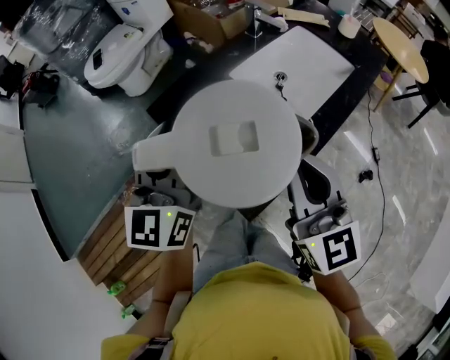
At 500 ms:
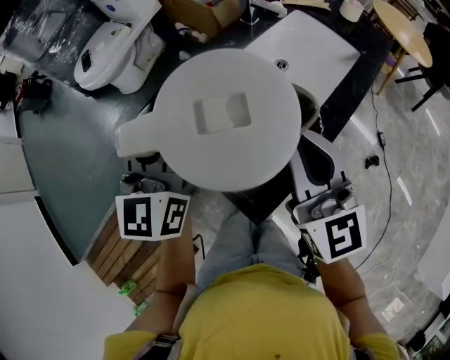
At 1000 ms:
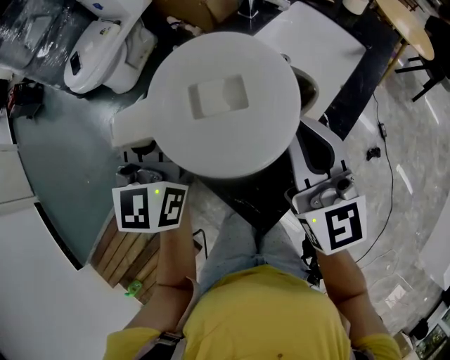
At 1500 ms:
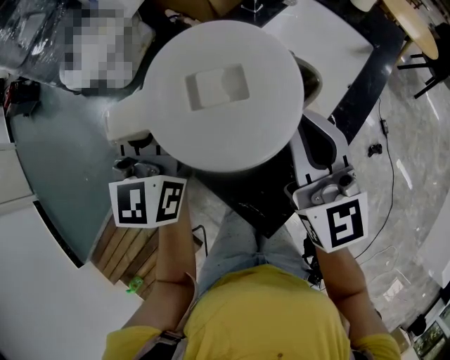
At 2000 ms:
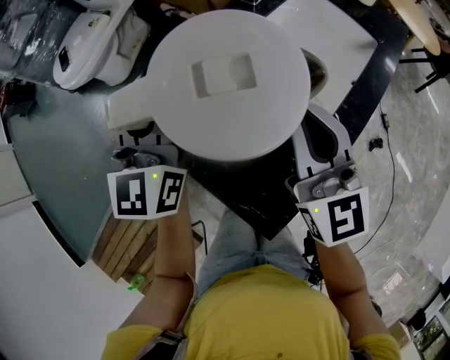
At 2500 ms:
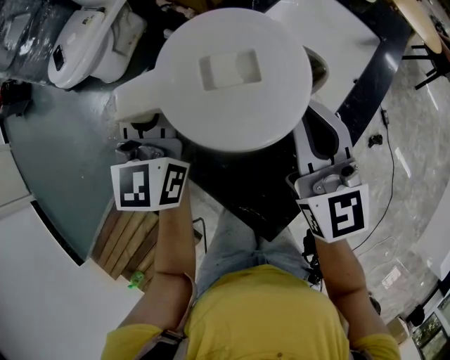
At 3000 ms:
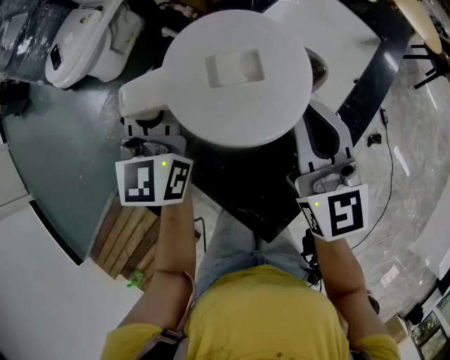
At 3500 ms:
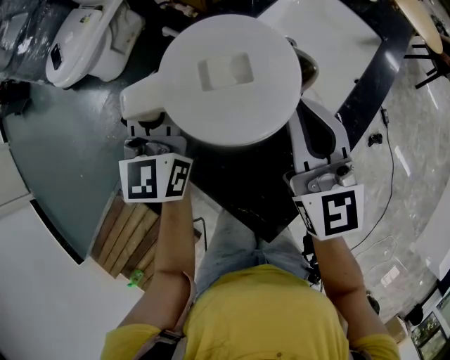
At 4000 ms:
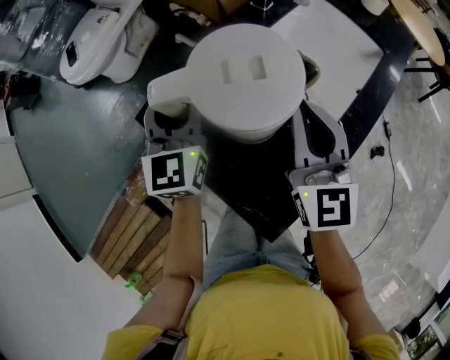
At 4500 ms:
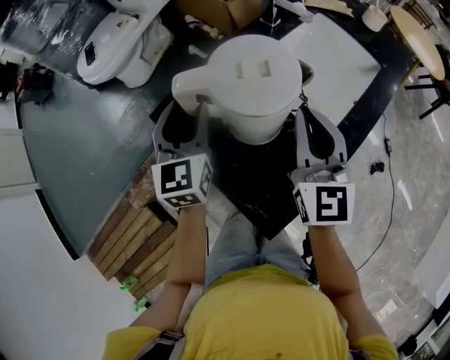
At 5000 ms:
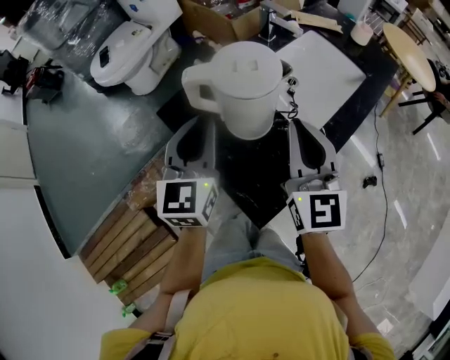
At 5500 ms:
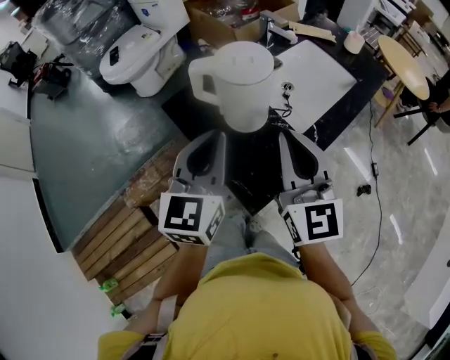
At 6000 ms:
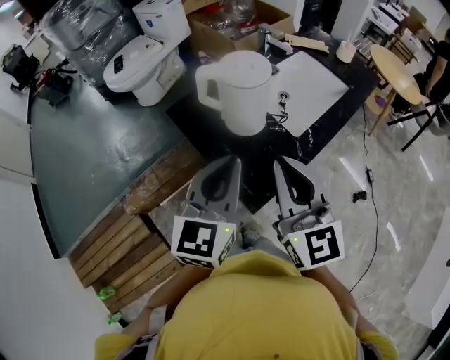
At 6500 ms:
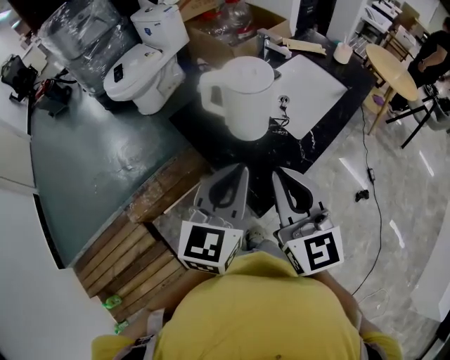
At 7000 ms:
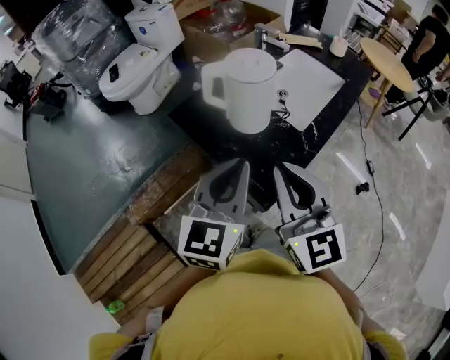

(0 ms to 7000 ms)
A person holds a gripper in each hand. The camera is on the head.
0 ms - 2000 ms: The right gripper goes approximately 15 cm forward and downward. The left gripper shifts some 15 cm forward.
2000 ms - 3500 ms: The left gripper travels downward by roughly 5 cm.
3500 ms - 5000 ms: The right gripper is displaced backward and upward by about 10 cm, while the left gripper travels backward by approximately 15 cm, and opens, then closes again.
5000 ms - 7000 ms: The left gripper is displaced backward by about 15 cm; the right gripper heads backward and to the left, covering approximately 20 cm.

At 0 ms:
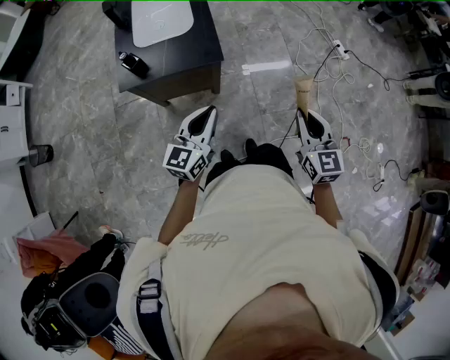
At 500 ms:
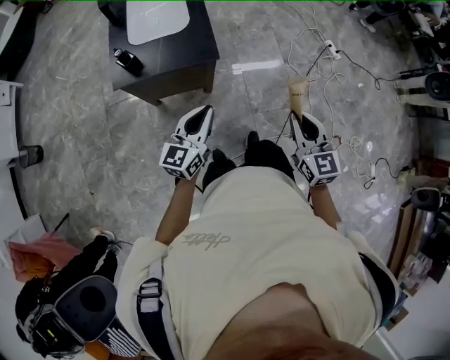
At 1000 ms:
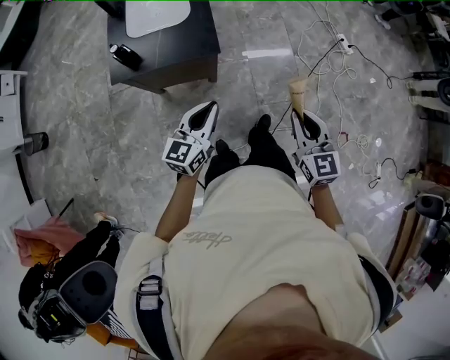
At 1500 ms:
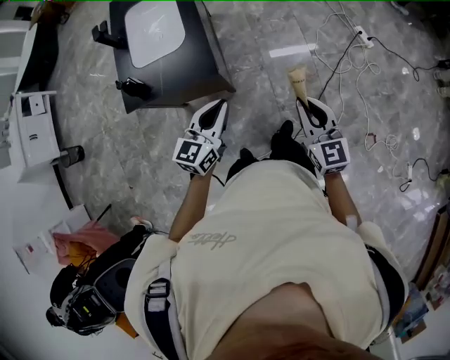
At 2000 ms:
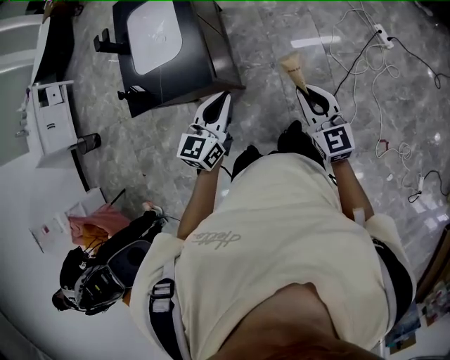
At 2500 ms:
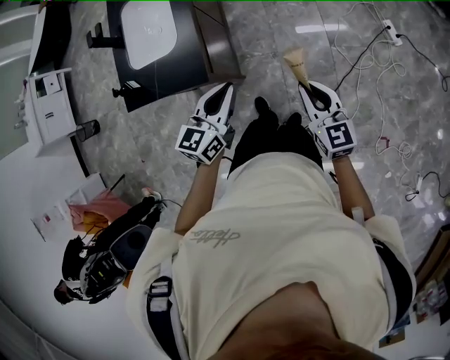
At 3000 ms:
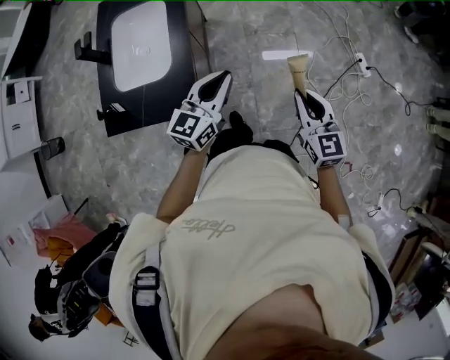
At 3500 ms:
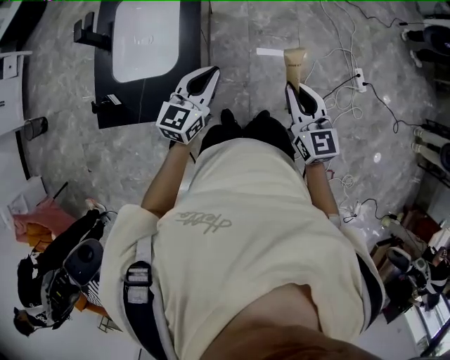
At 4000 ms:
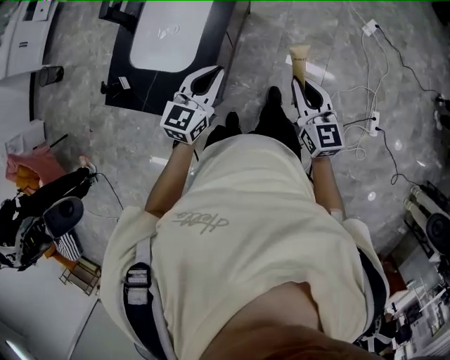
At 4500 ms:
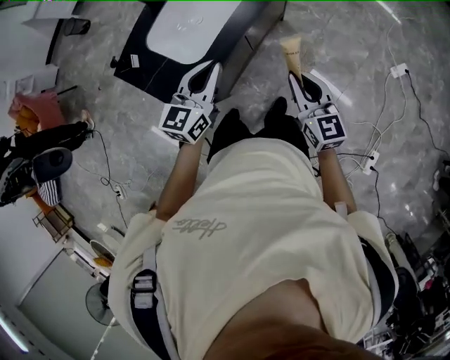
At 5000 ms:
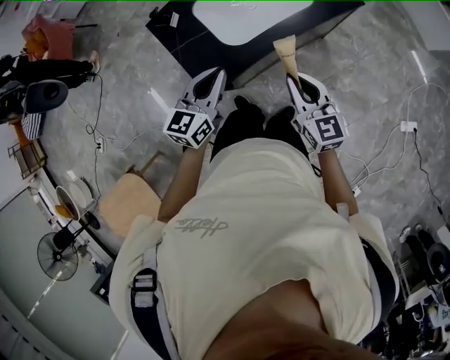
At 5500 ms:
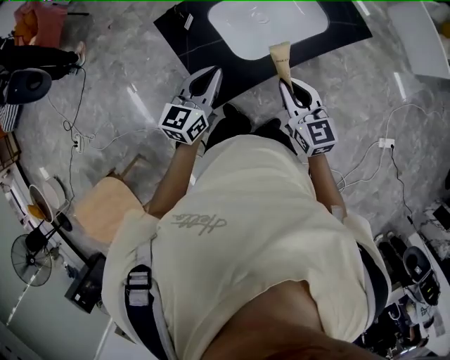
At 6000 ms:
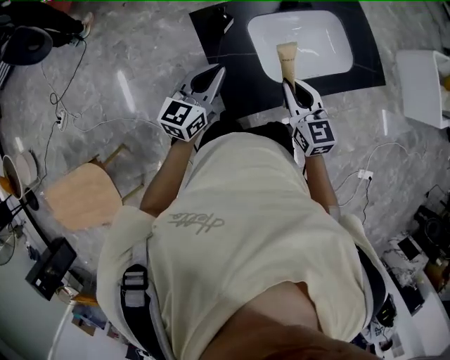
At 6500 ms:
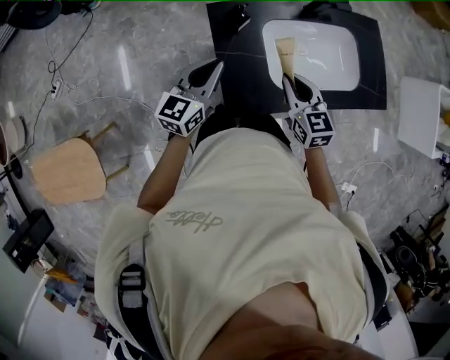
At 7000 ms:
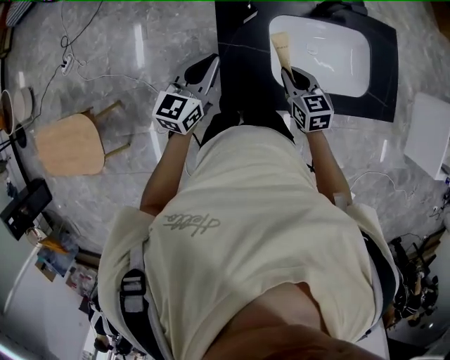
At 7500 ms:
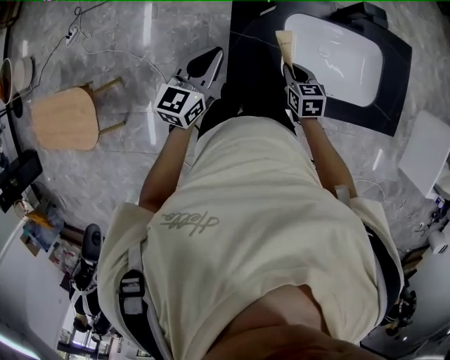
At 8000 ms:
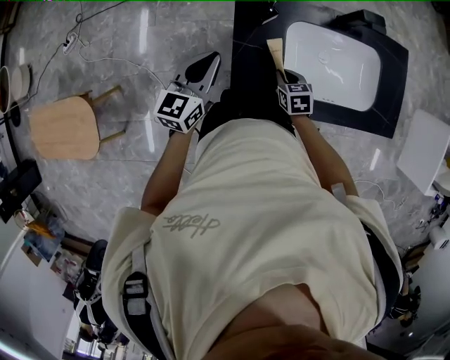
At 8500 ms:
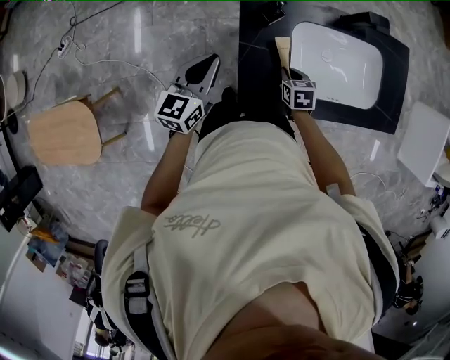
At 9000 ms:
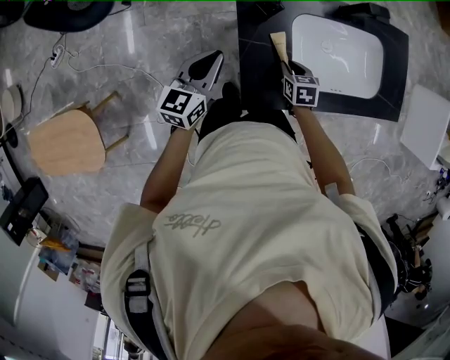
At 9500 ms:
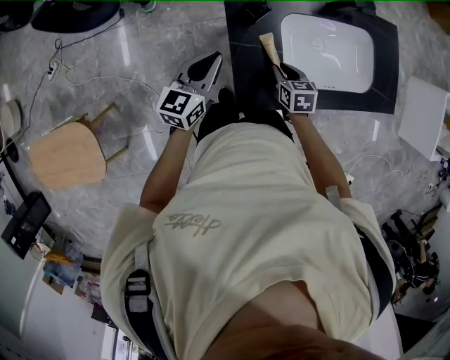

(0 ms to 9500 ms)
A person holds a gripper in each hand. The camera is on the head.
0 ms - 2000 ms: Both grippers move forward and to the right, roughly 30 cm.
2000 ms - 4000 ms: Both grippers travel together forward, about 35 cm.
4000 ms - 5500 ms: The right gripper ends up roughly 25 cm from where it was, and changes its angle by approximately 50 degrees. The left gripper moves about 20 cm, and rotates approximately 50 degrees.
5500 ms - 7500 ms: The left gripper ends up roughly 15 cm from where it was, and rotates roughly 30 degrees. Meanwhile the right gripper moves some 25 cm, and rotates approximately 40 degrees.
7500 ms - 9500 ms: The right gripper changes place by roughly 5 cm, while the left gripper shifts by about 5 cm.

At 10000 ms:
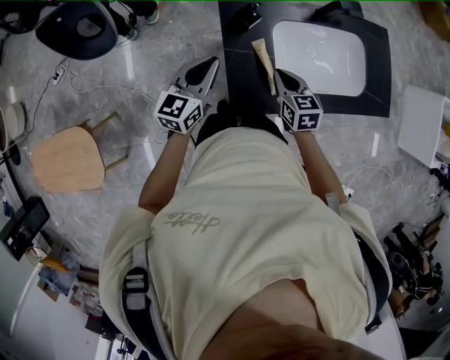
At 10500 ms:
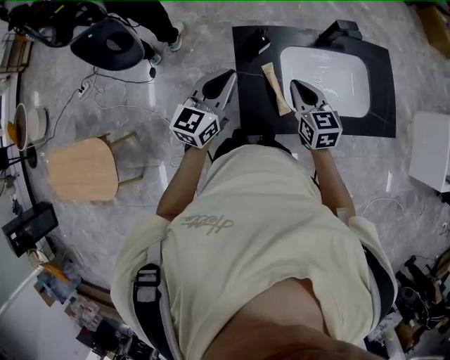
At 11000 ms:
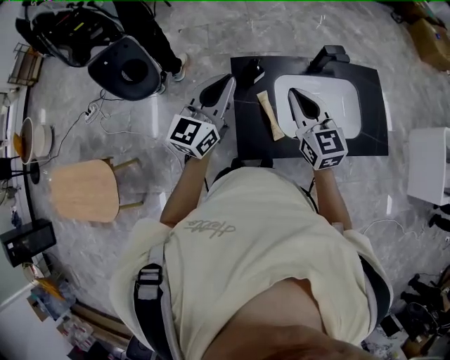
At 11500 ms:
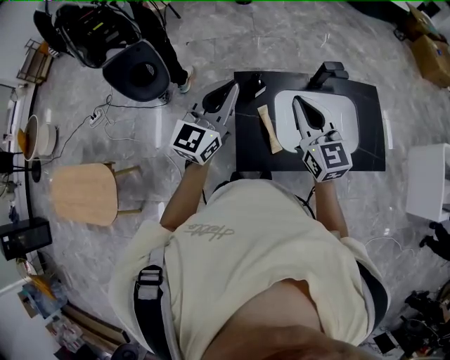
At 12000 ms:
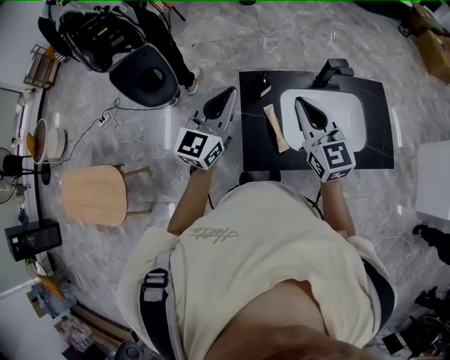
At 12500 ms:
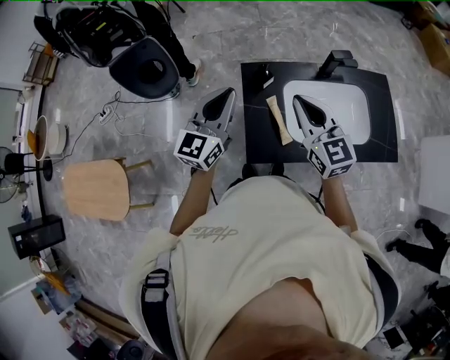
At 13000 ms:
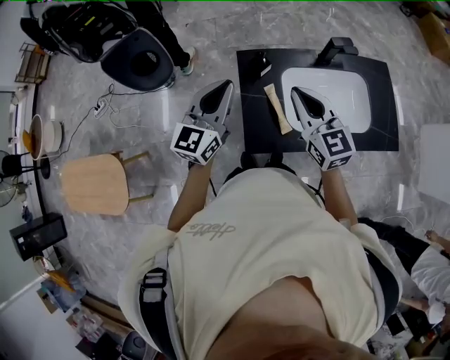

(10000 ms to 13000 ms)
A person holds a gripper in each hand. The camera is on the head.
10000 ms - 11500 ms: The grippers both shift upward by roughly 25 cm. The right gripper angles its fingers upward, by approximately 30 degrees; the left gripper turns by some 30 degrees.
11500 ms - 13000 ms: The left gripper ends up some 5 cm from where it was.

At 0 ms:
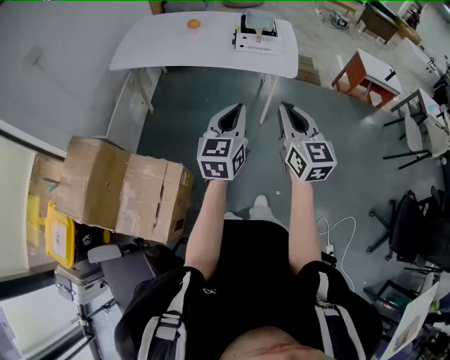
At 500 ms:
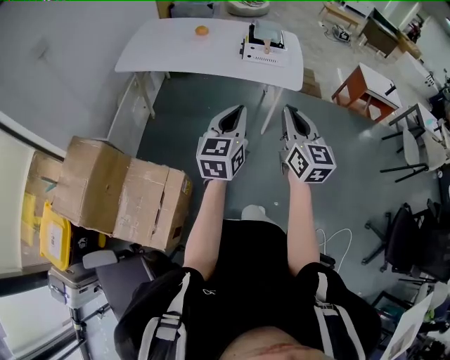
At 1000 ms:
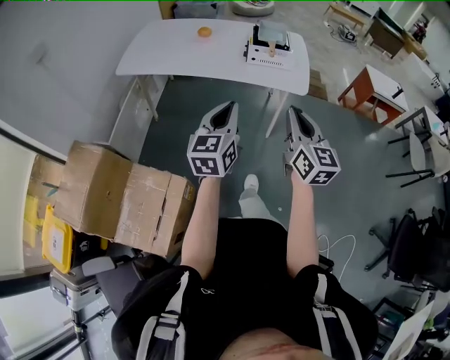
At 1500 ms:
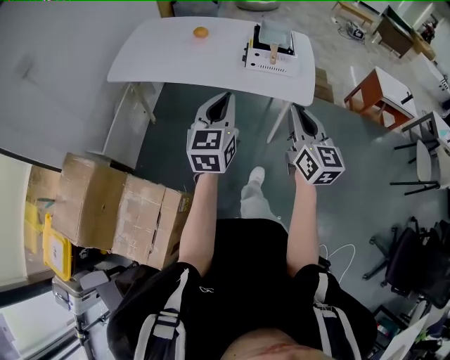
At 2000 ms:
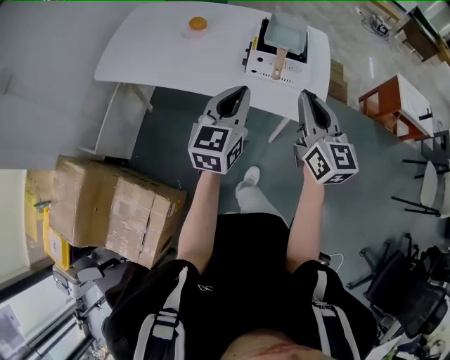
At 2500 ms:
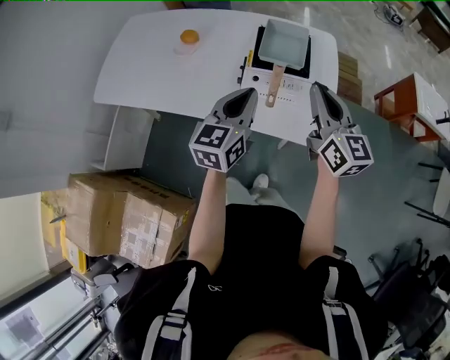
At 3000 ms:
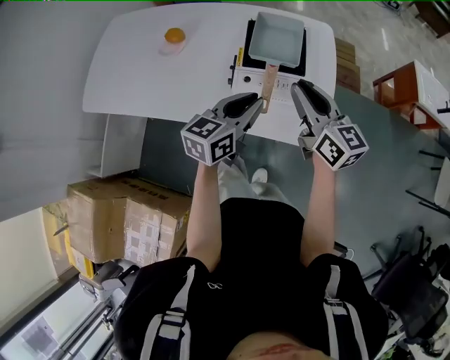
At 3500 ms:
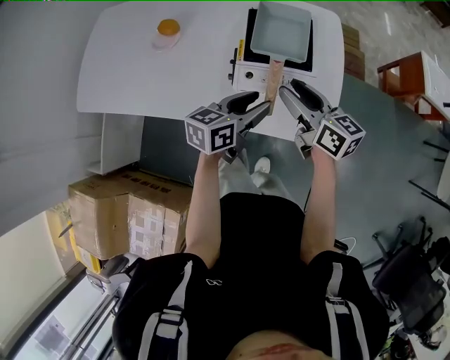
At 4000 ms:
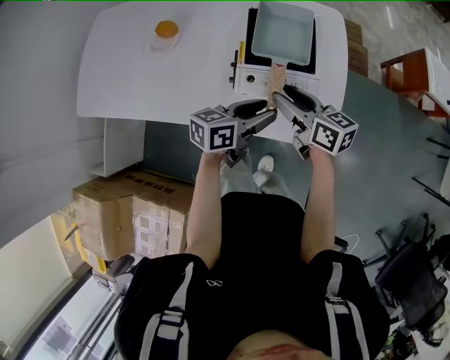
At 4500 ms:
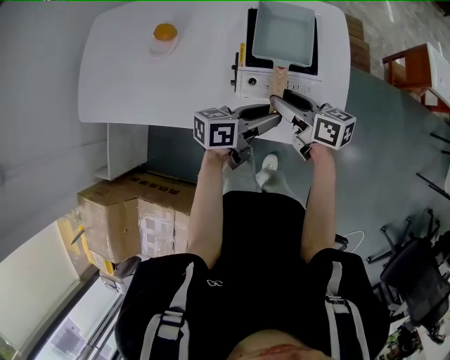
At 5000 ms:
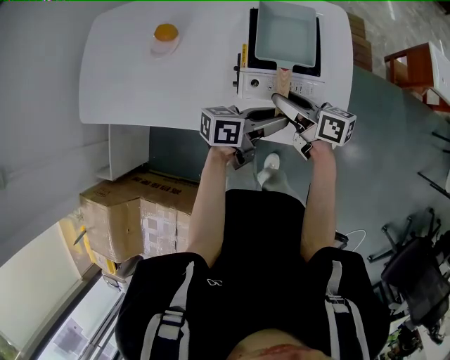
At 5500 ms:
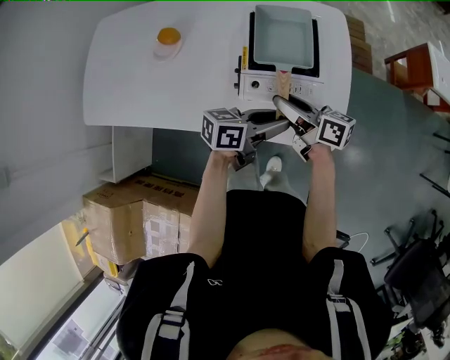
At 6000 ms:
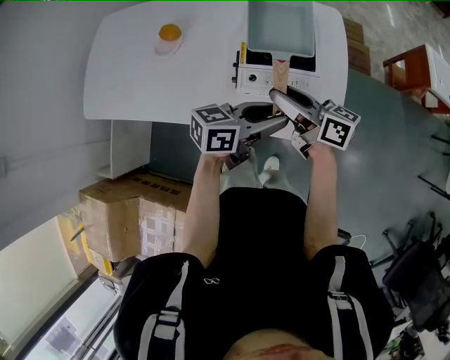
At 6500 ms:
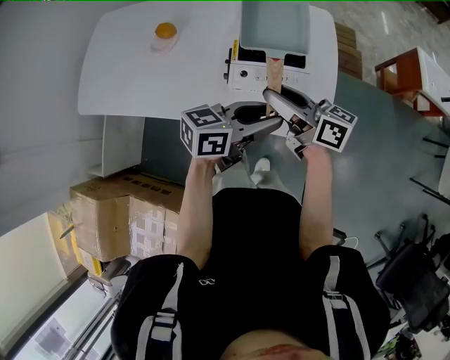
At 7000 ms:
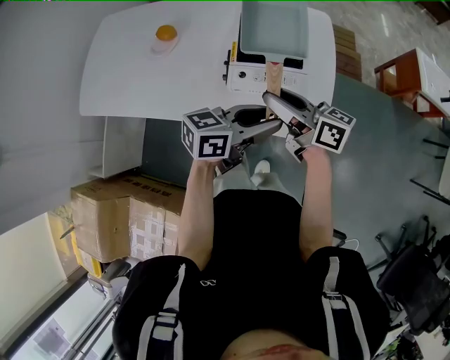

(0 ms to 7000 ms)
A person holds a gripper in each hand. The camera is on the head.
0 ms - 2000 ms: Both grippers travel together forward, approximately 35 cm.
2000 ms - 3500 ms: The right gripper heads forward and downward, covering roughly 25 cm, changes its angle by about 30 degrees, and opens up; the left gripper heads forward, downward and to the right, covering some 25 cm, turns by approximately 40 degrees, and opens its fingers.
3500 ms - 5000 ms: The right gripper moves downward, about 5 cm, and rotates approximately 20 degrees. Meanwhile the left gripper rotates about 30 degrees.
5000 ms - 7000 ms: Both grippers move upward, some 10 cm.
